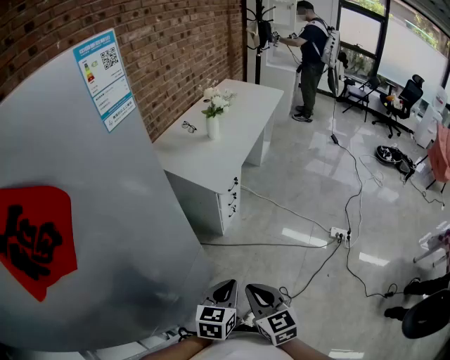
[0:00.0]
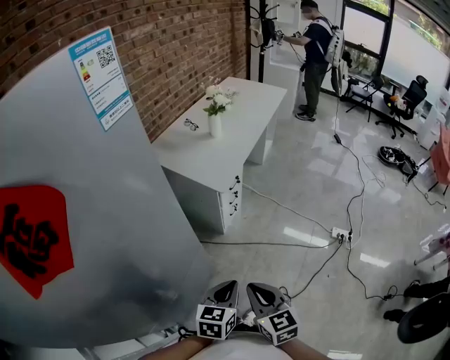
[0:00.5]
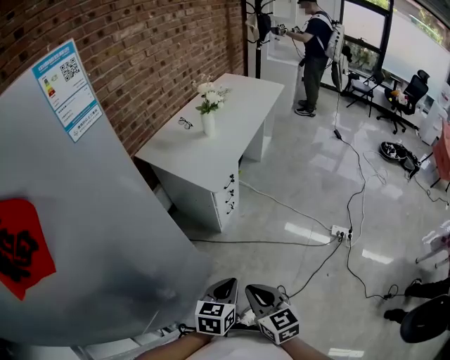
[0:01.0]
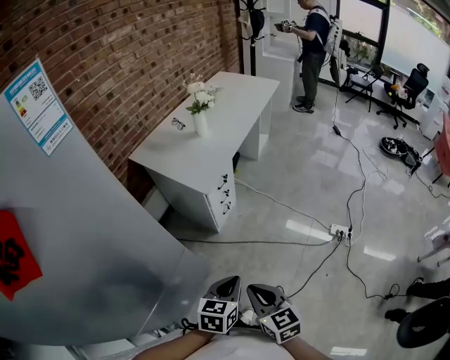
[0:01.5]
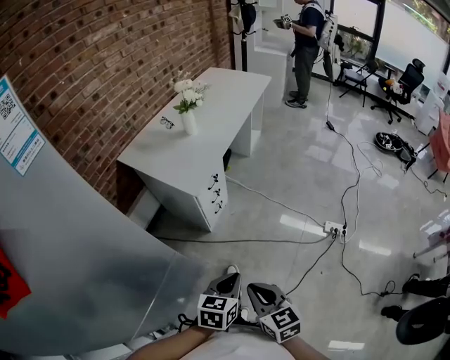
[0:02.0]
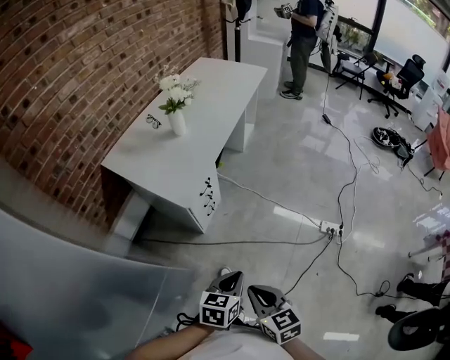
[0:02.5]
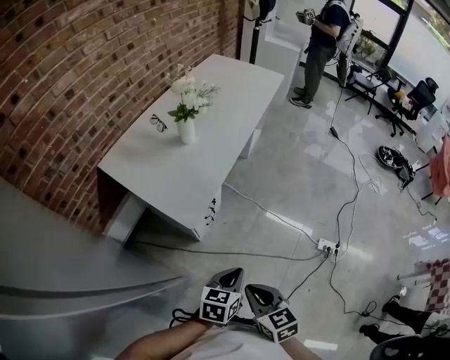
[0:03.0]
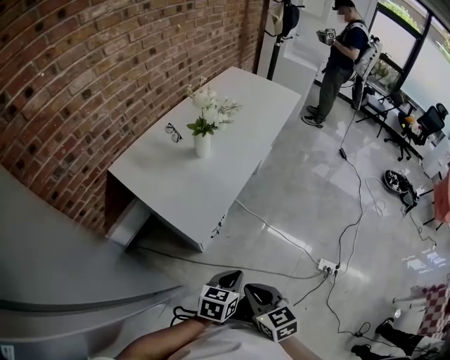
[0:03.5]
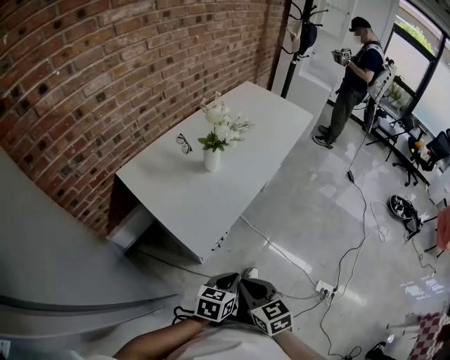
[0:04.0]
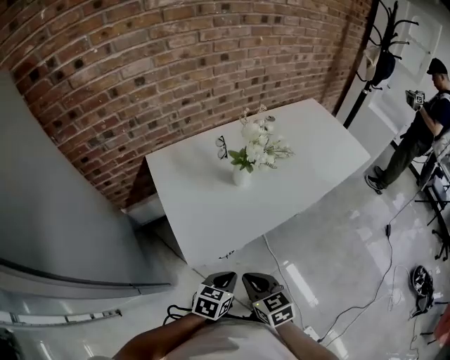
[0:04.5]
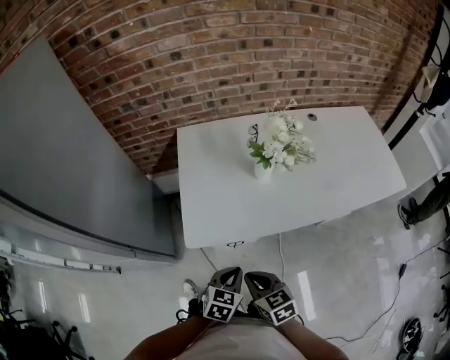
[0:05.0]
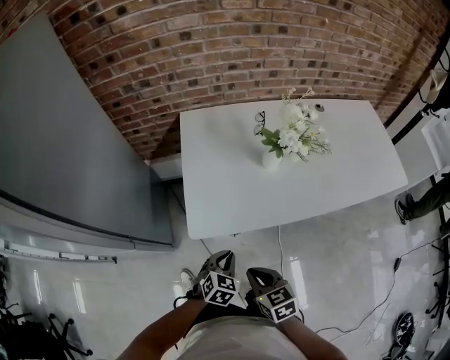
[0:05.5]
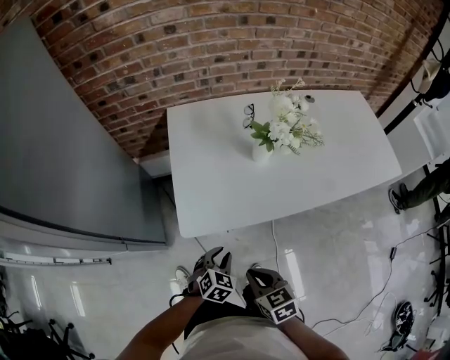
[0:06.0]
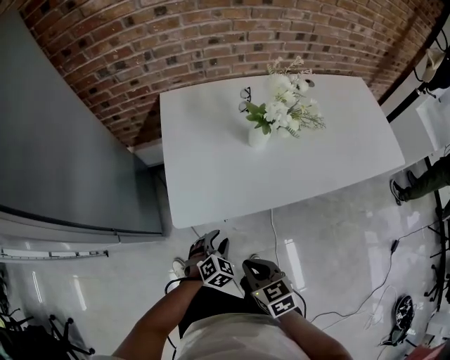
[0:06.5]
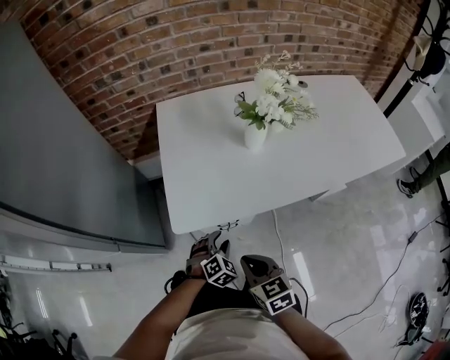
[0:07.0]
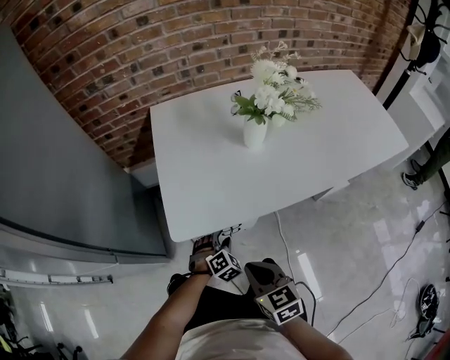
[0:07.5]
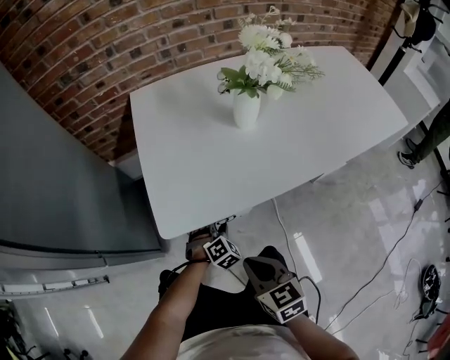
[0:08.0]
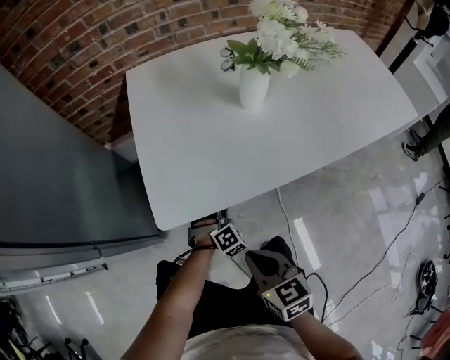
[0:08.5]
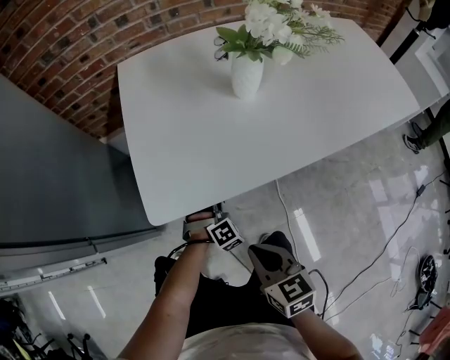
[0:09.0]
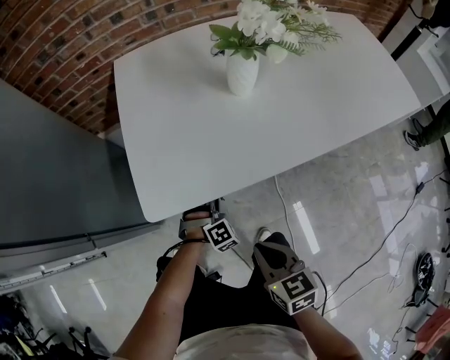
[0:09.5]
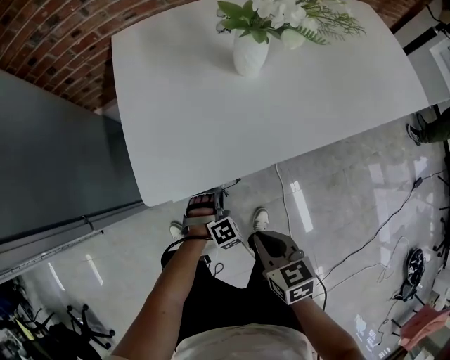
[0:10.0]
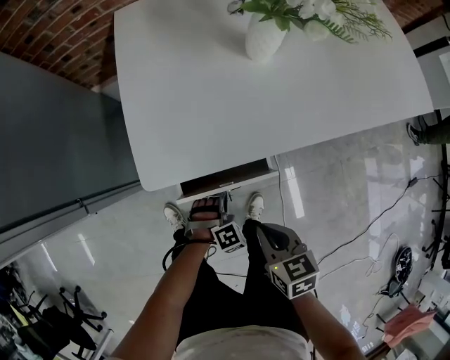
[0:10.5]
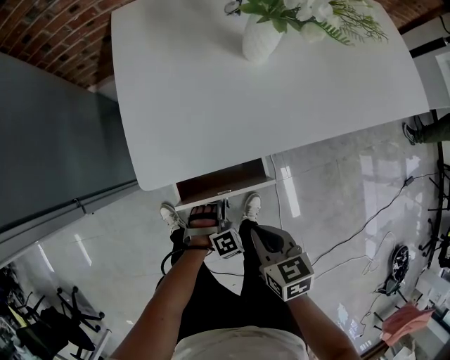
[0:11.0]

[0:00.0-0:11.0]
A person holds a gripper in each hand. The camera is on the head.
0:00.0 to 0:02.0: The two grippers go approximately 15 cm to the right and forward.
0:02.0 to 0:03.5: The grippers both shift forward by roughly 25 cm.
0:03.5 to 0:05.5: The left gripper ends up about 20 cm from where it was, and swivels some 50 degrees; the right gripper changes place by some 25 cm, and changes its angle by roughly 50 degrees.
0:05.5 to 0:07.5: The left gripper shifts about 20 cm downward, changes its angle by some 30 degrees, and opens; the right gripper is displaced downward by some 5 cm.
0:07.5 to 0:09.0: The grippers both shift downward by roughly 5 cm. The left gripper closes up.
0:09.0 to 0:11.0: The left gripper goes some 15 cm backward.

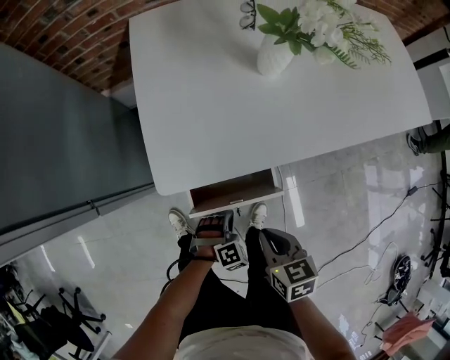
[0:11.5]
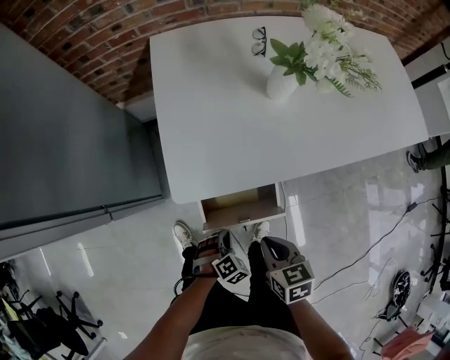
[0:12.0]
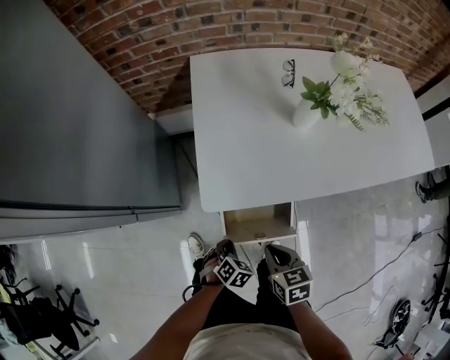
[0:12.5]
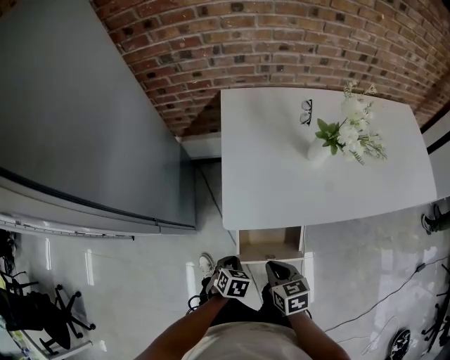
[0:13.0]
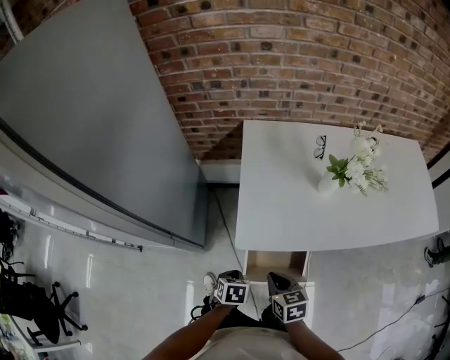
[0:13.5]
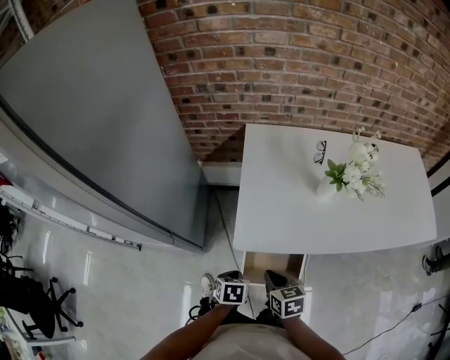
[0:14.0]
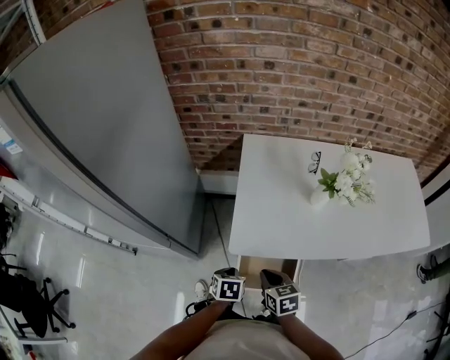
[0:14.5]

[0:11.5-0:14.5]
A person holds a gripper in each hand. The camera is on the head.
0:11.5 to 0:13.0: The left gripper is displaced to the left and upward by some 20 cm, and rolls counterclockwise, seen from behind, by roughly 60 degrees, while the right gripper moves to the left and forward, approximately 10 cm.
0:13.0 to 0:14.5: The right gripper changes place by roughly 5 cm, while the left gripper heads upward, covering about 10 cm.

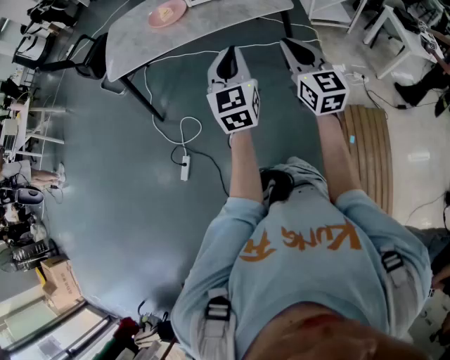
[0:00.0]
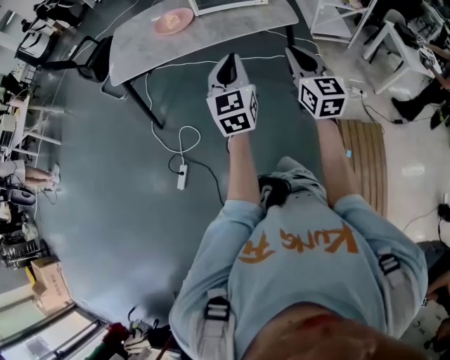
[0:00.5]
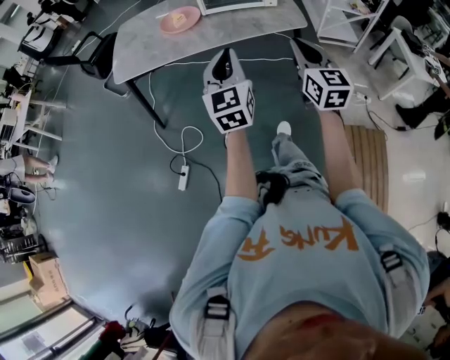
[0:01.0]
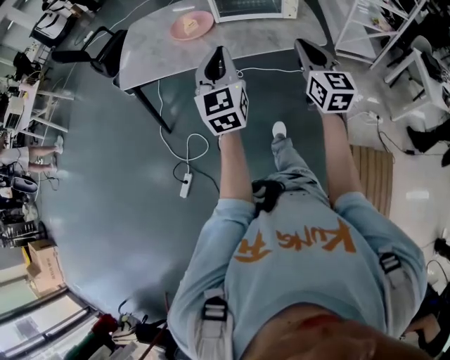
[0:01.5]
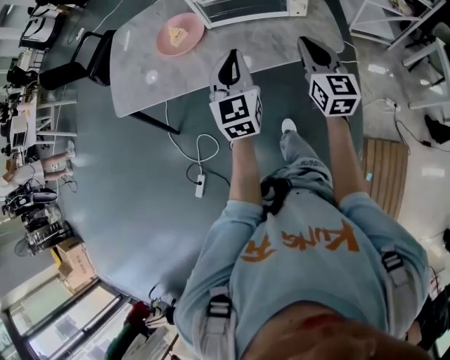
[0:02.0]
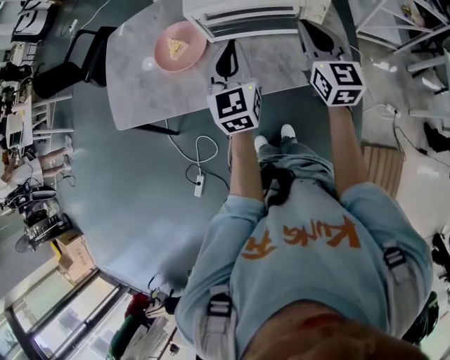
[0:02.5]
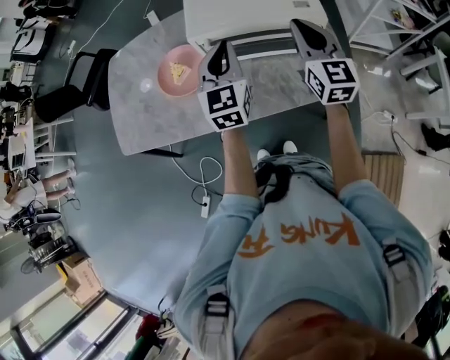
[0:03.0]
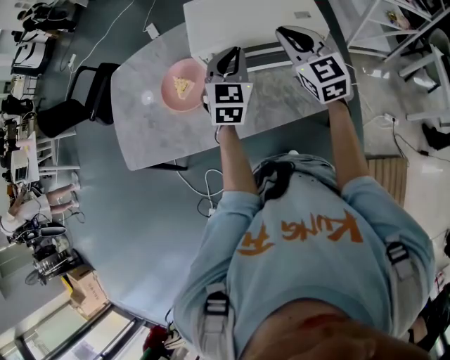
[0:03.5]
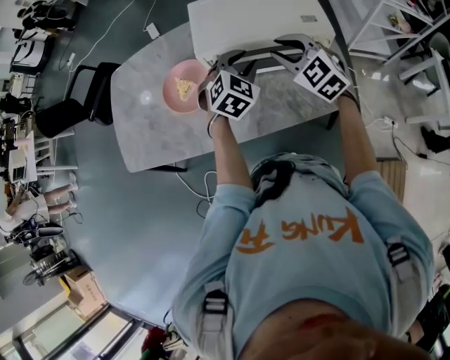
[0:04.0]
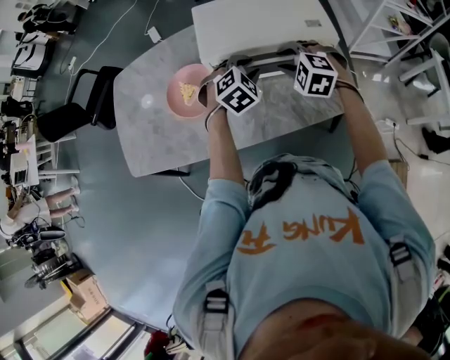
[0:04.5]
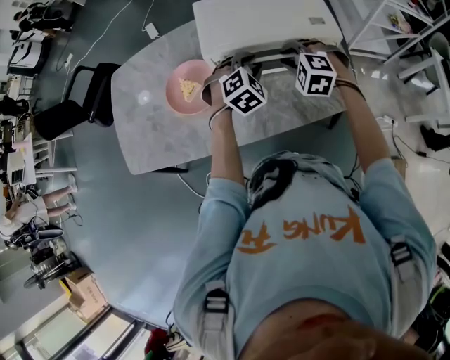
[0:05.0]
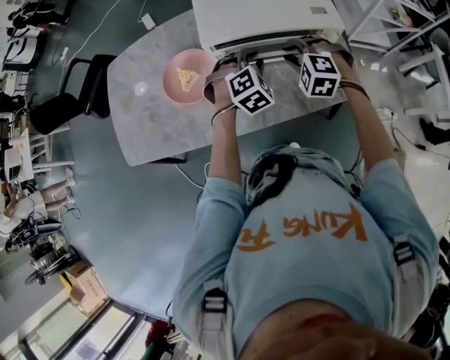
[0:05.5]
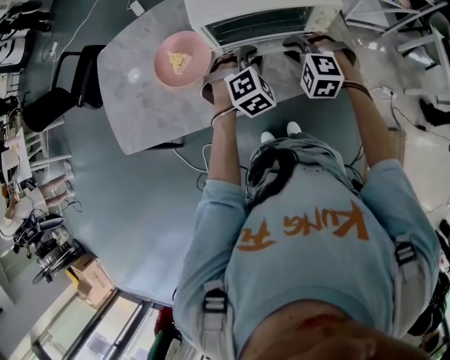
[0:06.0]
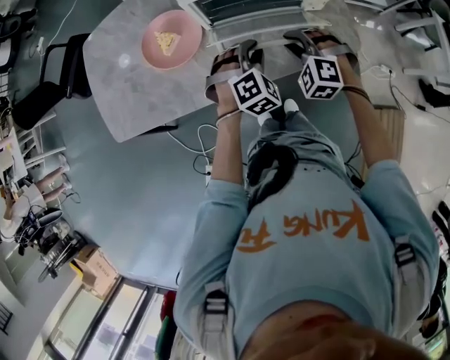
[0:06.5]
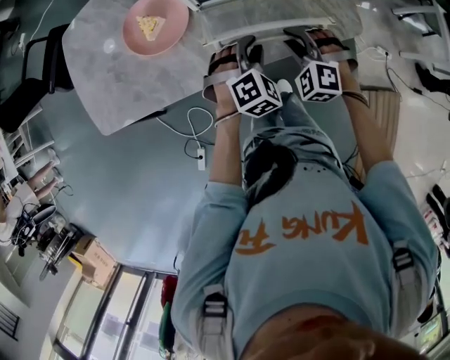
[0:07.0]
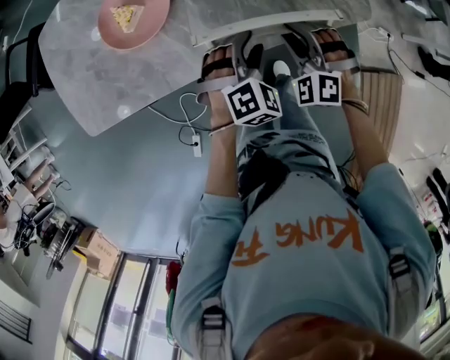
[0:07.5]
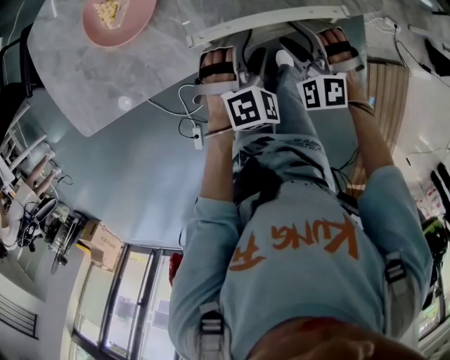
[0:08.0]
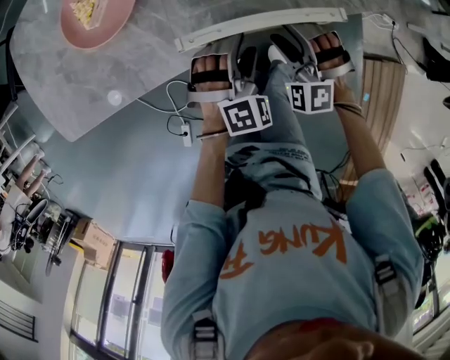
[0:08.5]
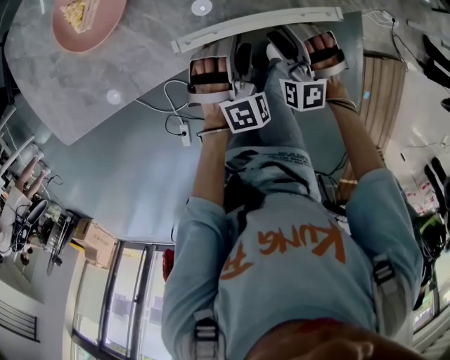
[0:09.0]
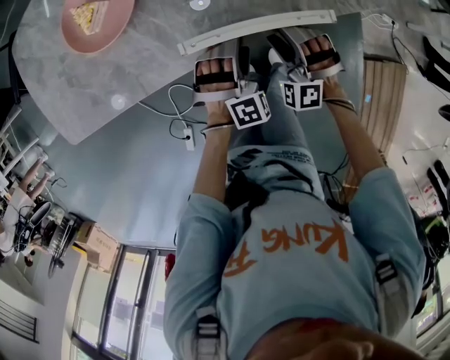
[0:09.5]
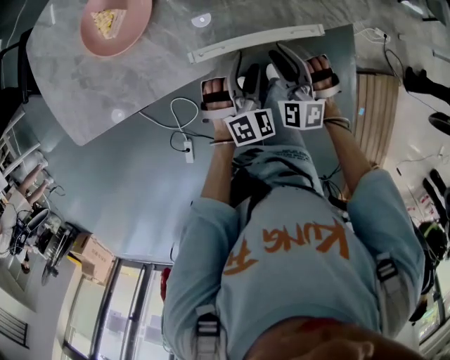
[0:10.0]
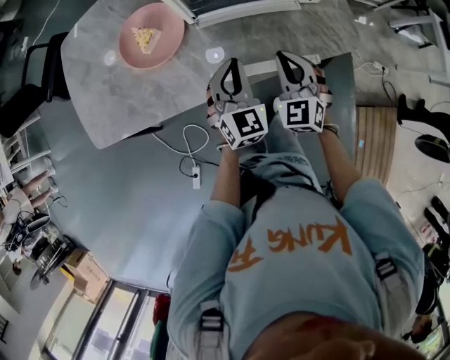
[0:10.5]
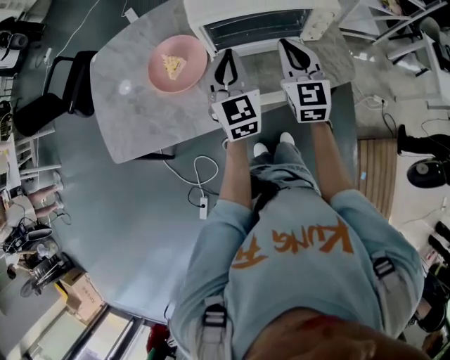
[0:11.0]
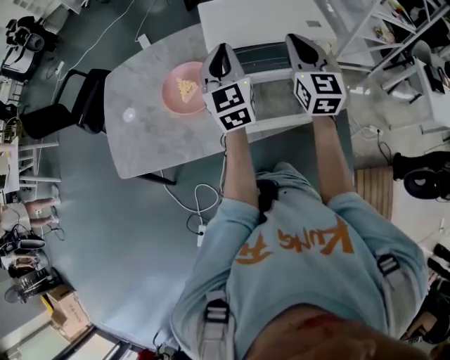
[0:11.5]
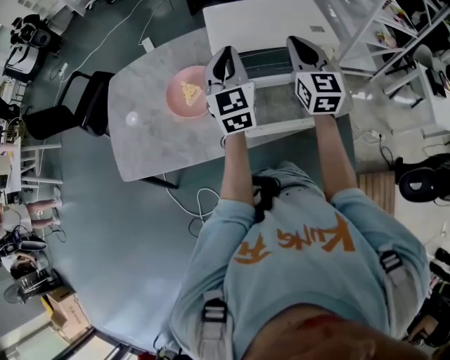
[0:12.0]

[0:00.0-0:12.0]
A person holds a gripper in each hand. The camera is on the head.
0:00.0 to 0:02.0: The grippers both shift forward by about 40 cm.
0:02.0 to 0:04.0: The grippers both shift forward by approximately 25 cm. The left gripper rotates approximately 50 degrees, and opens up. The right gripper swivels approximately 50 degrees.
0:04.0 to 0:06.0: The grippers both shift downward and backward by approximately 10 cm. The right gripper rotates approximately 40 degrees, while the left gripper changes its angle by about 20 degrees.
0:06.0 to 0:08.0: Both grippers move downward and backward, about 20 cm. The left gripper opens its fingers, while the right gripper opens its fingers.
0:08.0 to 0:10.0: The right gripper moves some 10 cm downward and comes back, and closes; the left gripper moves about 10 cm downward and comes back.
0:10.0 to 0:12.0: Both grippers move upward and forward, approximately 40 cm. The left gripper tilts its fingers about 40 degrees upward, and closes up. Meanwhile the right gripper twists roughly 50 degrees clockwise, seen from behind, and closes up.
